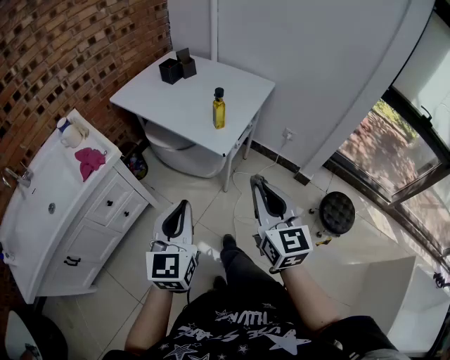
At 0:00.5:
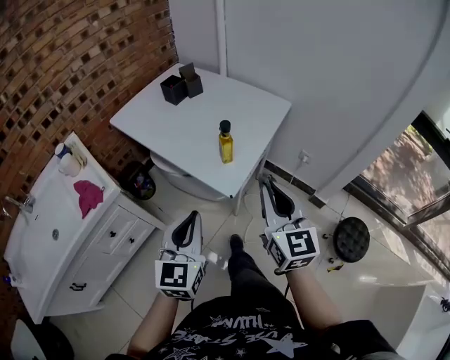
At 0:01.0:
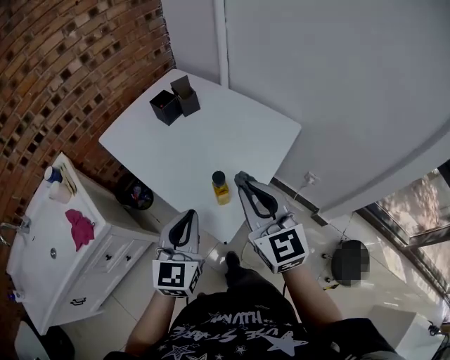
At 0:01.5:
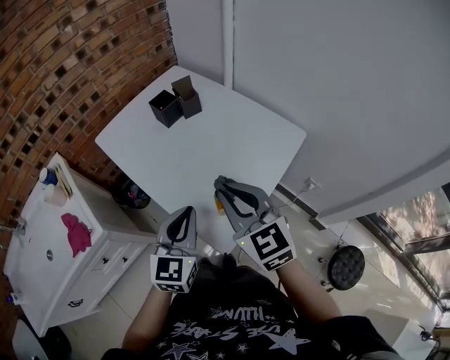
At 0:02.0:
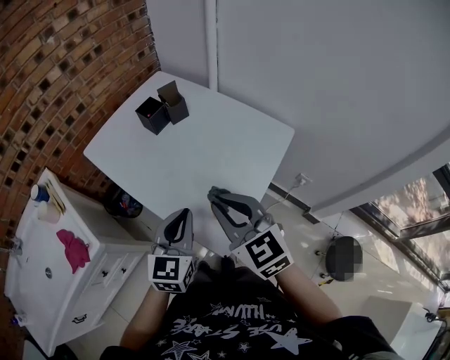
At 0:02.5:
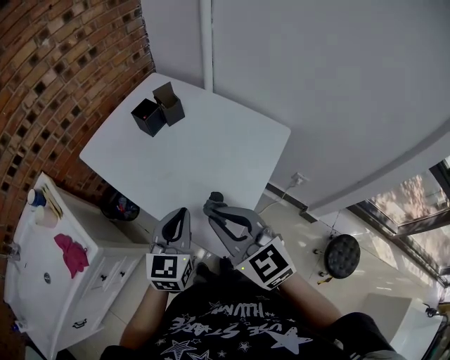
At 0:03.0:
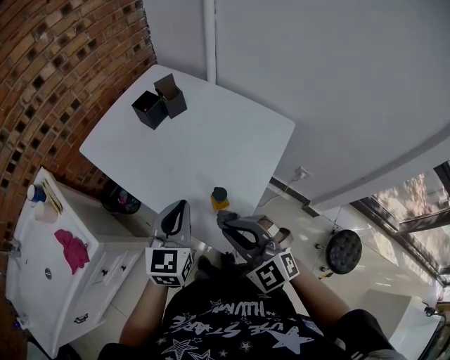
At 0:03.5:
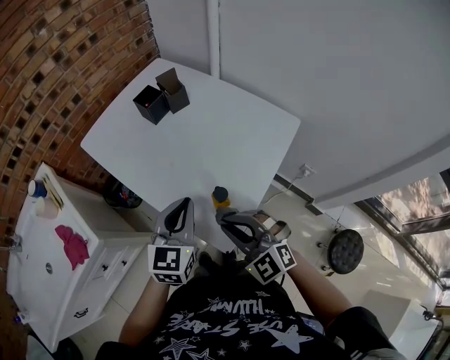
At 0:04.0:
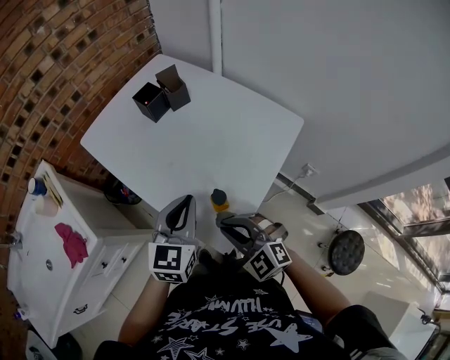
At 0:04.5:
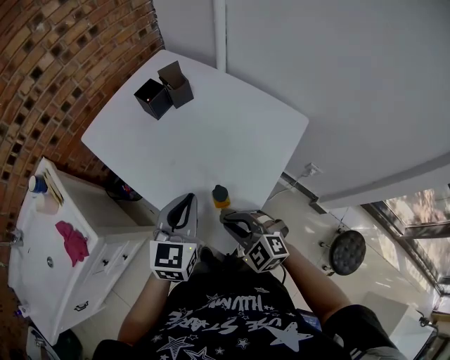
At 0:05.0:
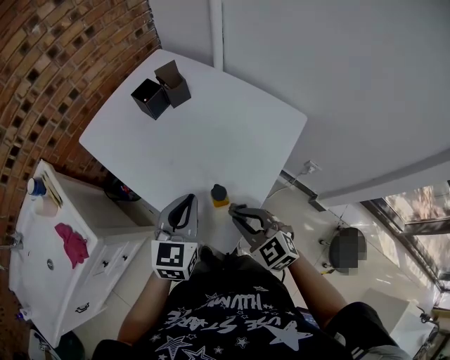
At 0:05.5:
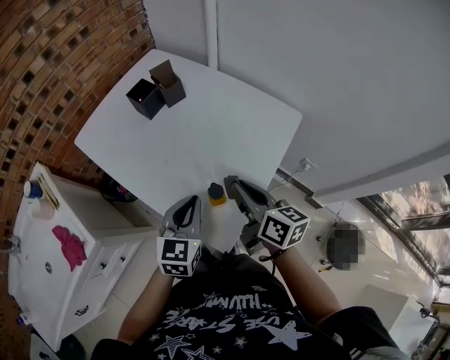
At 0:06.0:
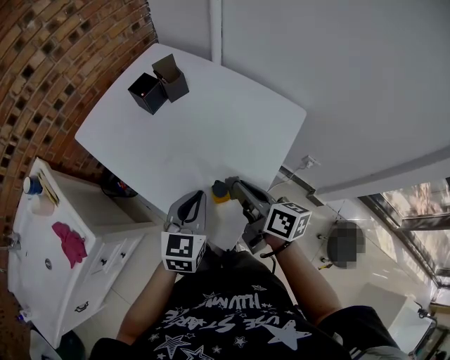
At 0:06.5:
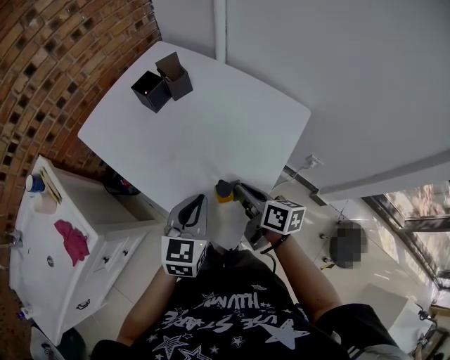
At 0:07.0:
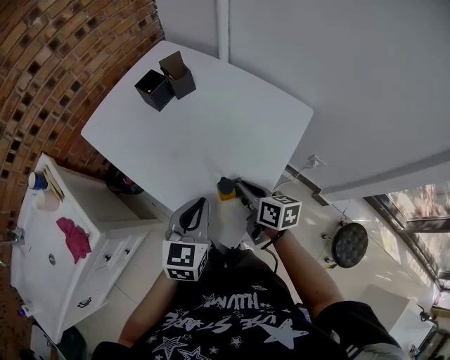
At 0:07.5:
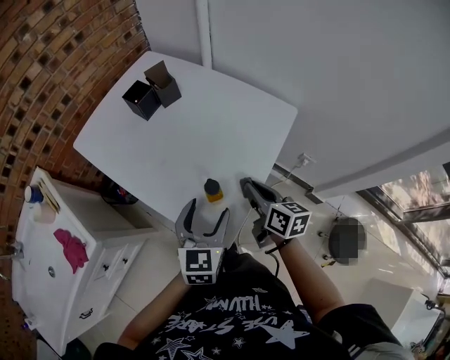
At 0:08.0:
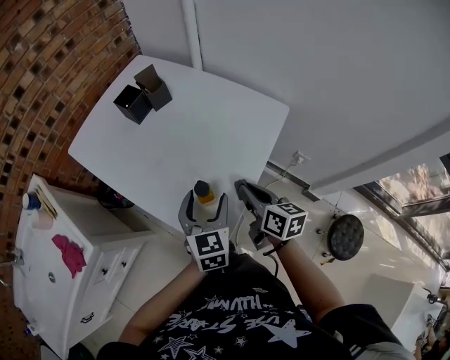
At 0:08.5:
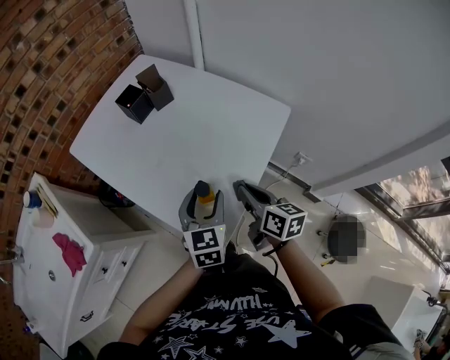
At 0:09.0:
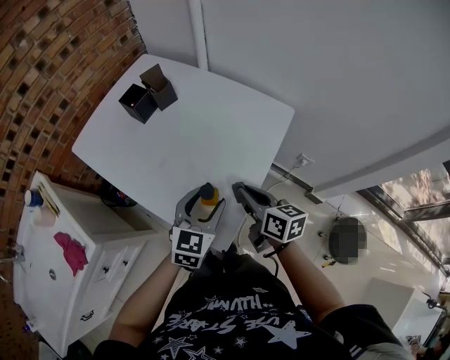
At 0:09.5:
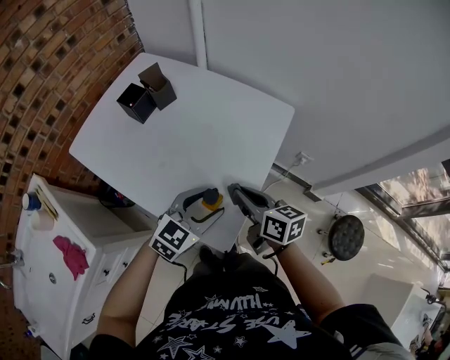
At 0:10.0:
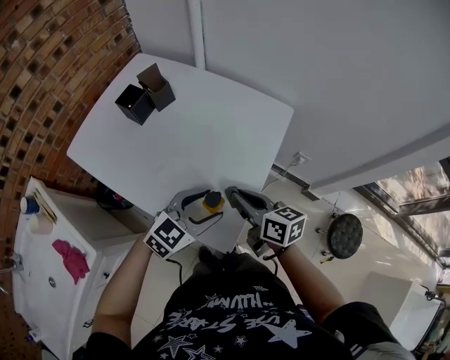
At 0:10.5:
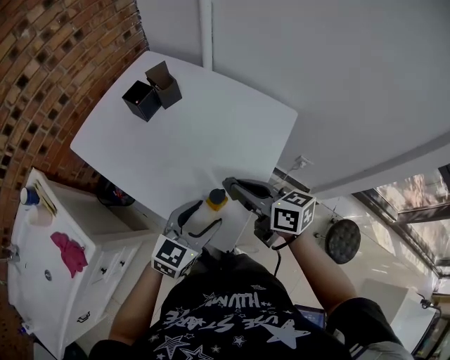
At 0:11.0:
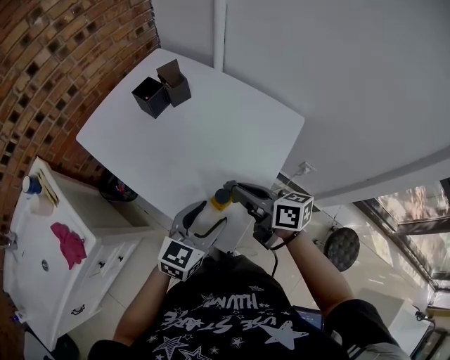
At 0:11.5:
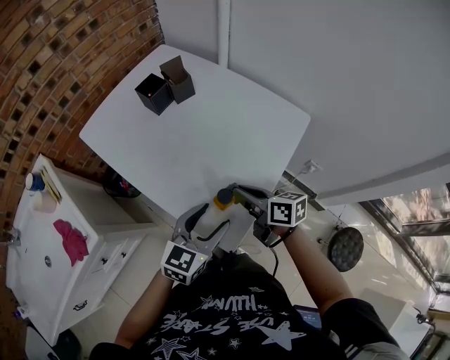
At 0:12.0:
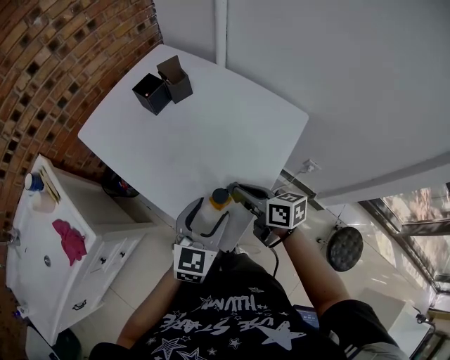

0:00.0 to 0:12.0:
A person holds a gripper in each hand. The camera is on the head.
0:00.0 to 0:02.0: The two grippers go roughly 35 cm forward. The right gripper swivels approximately 30 degrees.
0:02.0 to 0:04.0: The right gripper is displaced downward and backward by roughly 15 cm, and changes its angle by roughly 30 degrees.
0:04.0 to 0:06.0: The left gripper is displaced downward by approximately 5 cm; the right gripper travels forward and to the right by roughly 10 cm, and rotates around the line of its fingers by about 80 degrees, clockwise from behind.
0:06.0 to 0:08.0: The left gripper ends up roughly 5 cm from where it was, and opens. Meanwhile the right gripper is displaced to the right by some 5 cm.
0:08.0 to 0:10.0: The right gripper ends up about 5 cm from where it was. The left gripper swivels some 50 degrees.
0:10.0 to 0:12.0: The left gripper changes its angle by some 40 degrees.

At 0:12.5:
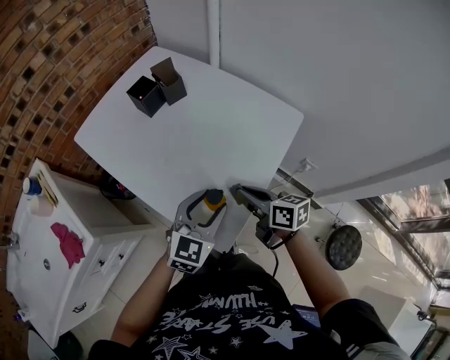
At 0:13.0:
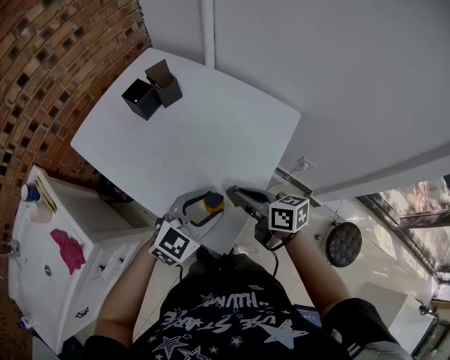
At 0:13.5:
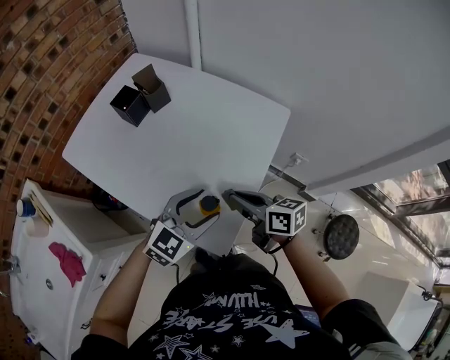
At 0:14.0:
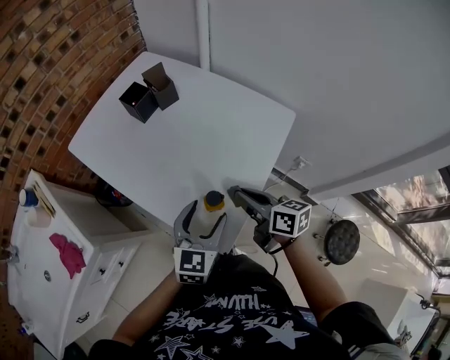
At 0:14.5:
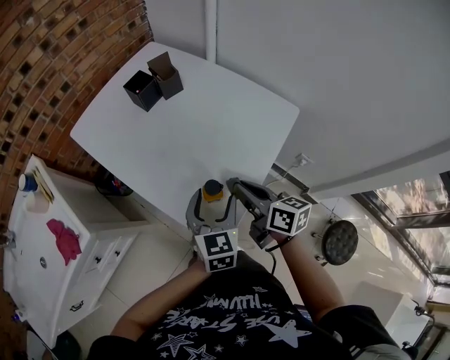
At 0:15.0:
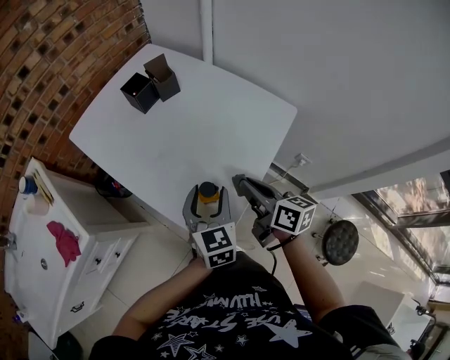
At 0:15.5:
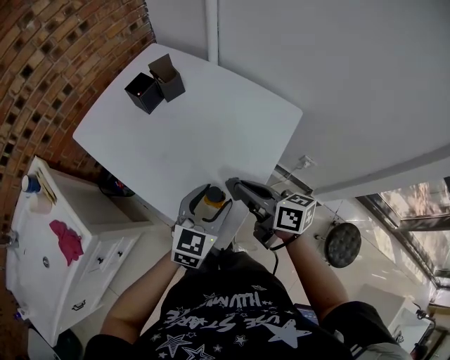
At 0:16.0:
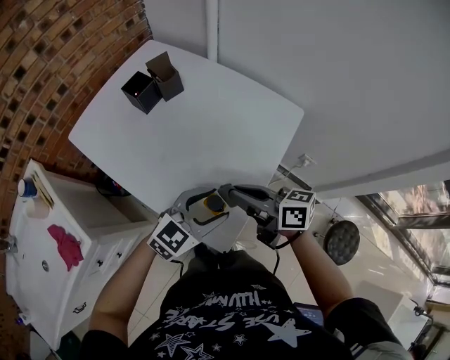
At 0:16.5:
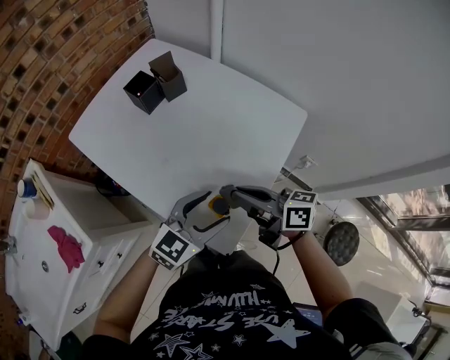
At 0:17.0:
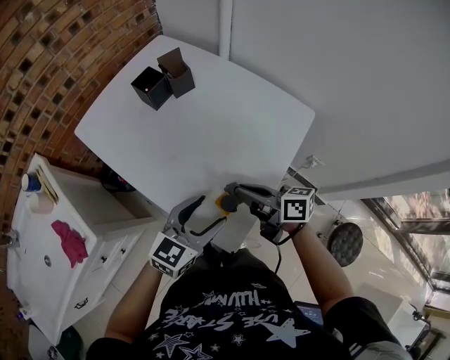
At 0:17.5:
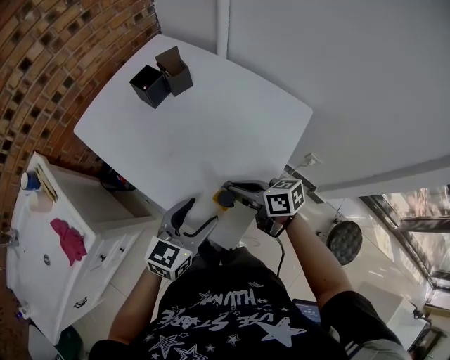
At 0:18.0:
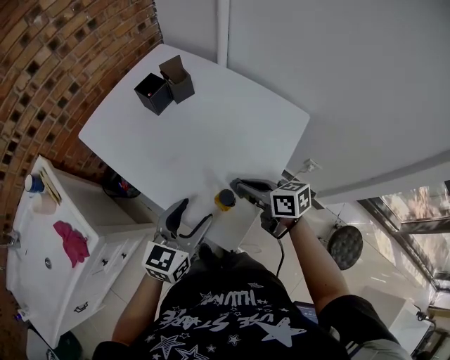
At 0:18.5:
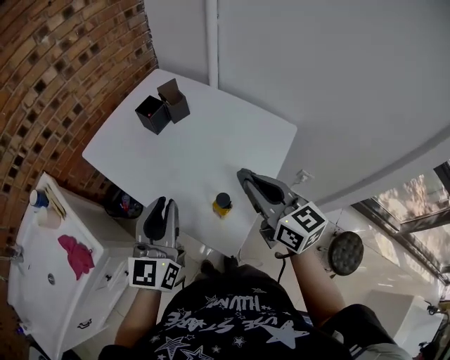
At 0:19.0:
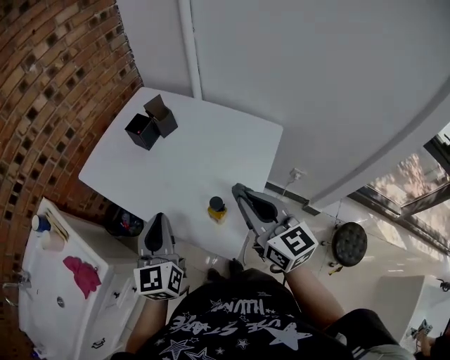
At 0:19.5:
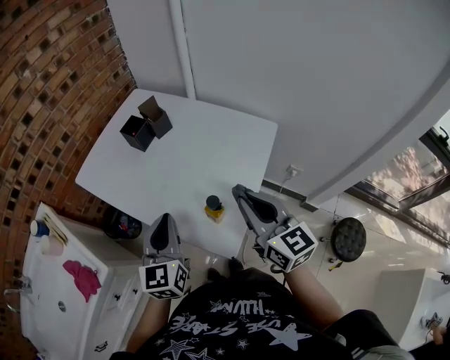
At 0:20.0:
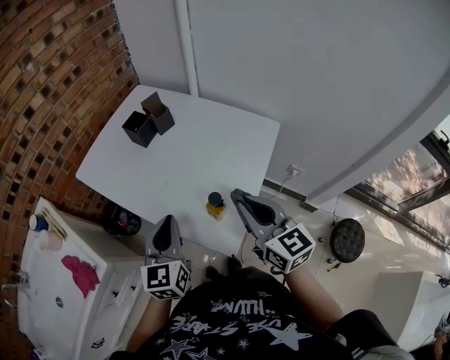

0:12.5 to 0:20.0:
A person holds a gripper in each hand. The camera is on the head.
0:12.5 to 0:14.5: The left gripper changes its angle by roughly 30 degrees.
0:14.5 to 0:16.5: The left gripper rotates some 50 degrees.
0:16.5 to 0:18.0: The right gripper travels downward by roughly 5 cm. The left gripper is displaced to the left by roughly 5 cm, and turns by roughly 20 degrees.
0:18.0 to 0:20.0: The left gripper goes about 10 cm to the left and upward, and closes. Meanwhile the right gripper is displaced upward and backward by approximately 15 cm, and rotates roughly 40 degrees.

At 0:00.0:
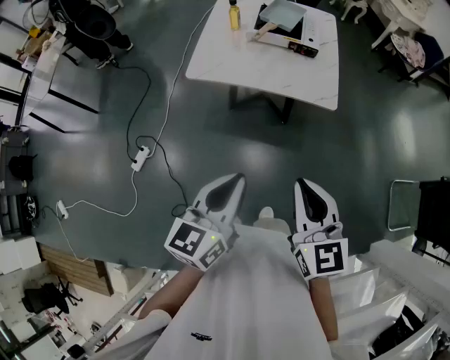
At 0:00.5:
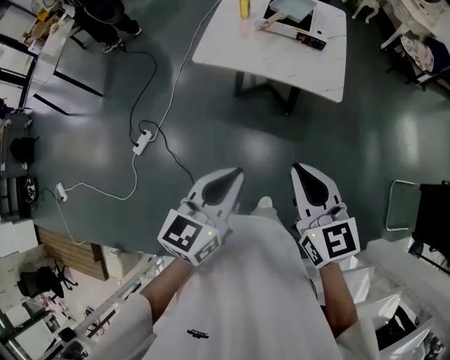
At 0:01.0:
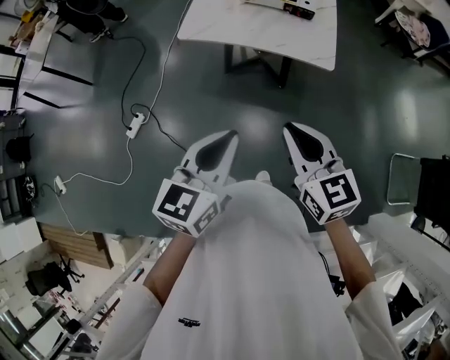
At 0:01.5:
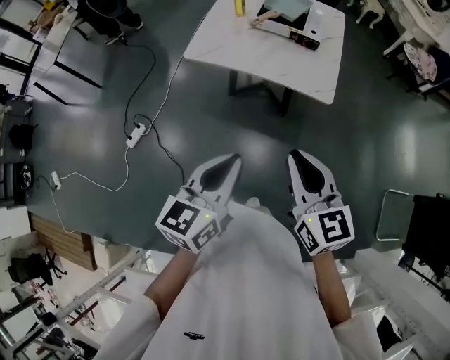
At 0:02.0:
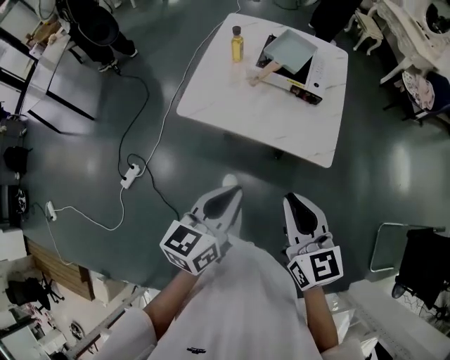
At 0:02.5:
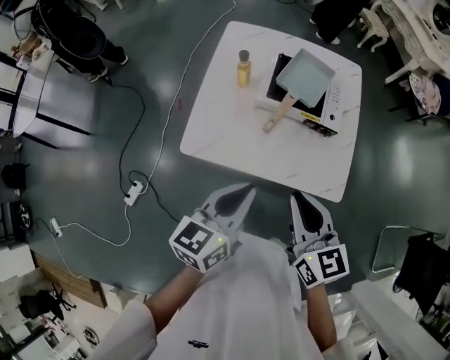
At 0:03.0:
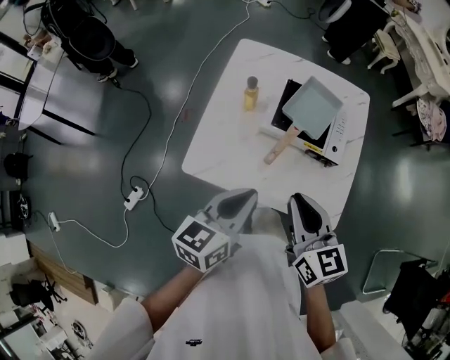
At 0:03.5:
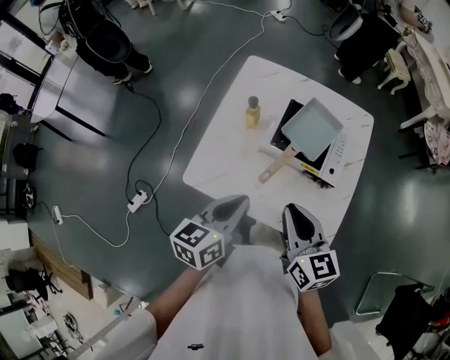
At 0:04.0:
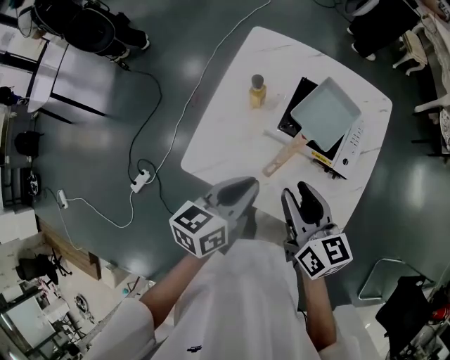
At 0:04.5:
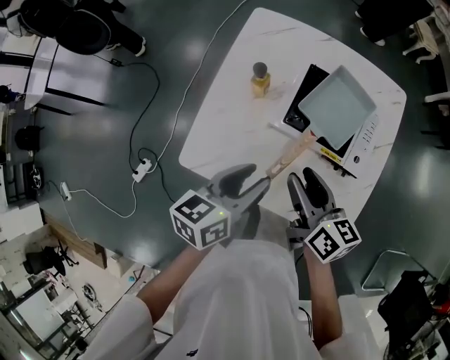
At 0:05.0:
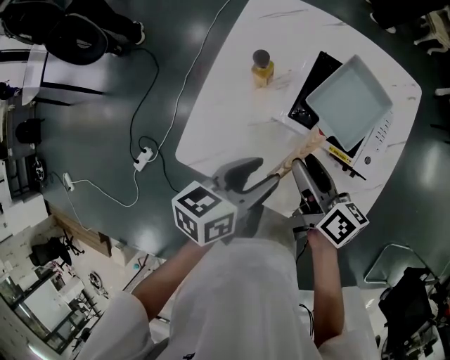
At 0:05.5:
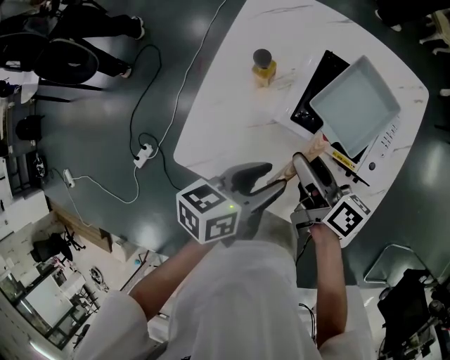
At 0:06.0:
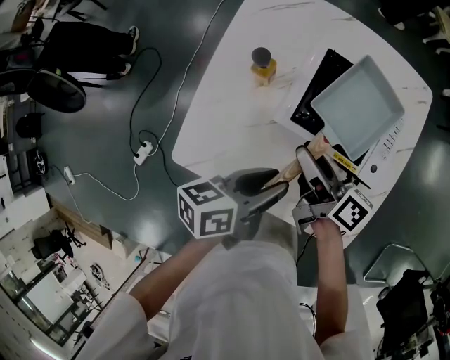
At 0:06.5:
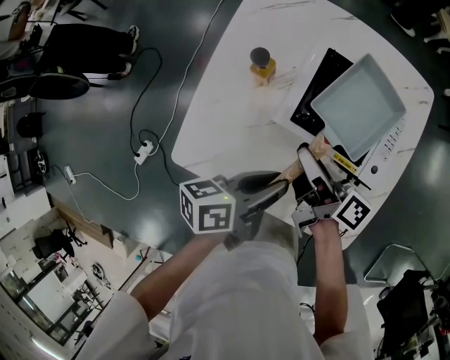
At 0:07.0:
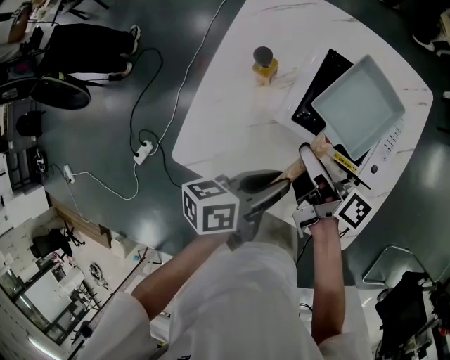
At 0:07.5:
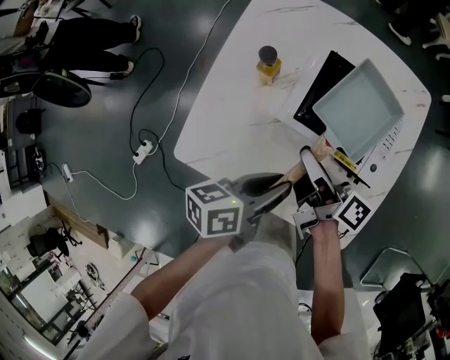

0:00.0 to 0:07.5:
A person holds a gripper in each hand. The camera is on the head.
0:00.0 to 0:02.0: Both grippers move forward, approximately 15 cm.
0:02.0 to 0:04.0: The grippers both shift forward by roughly 35 cm. The right gripper changes its angle by approximately 20 degrees, and opens its fingers.
0:04.0 to 0:05.5: The two grippers go approximately 15 cm downward and forward. The left gripper opens. The right gripper rotates some 40 degrees, and opens its fingers.
0:05.5 to 0:07.5: The right gripper closes its fingers, while the left gripper closes.
